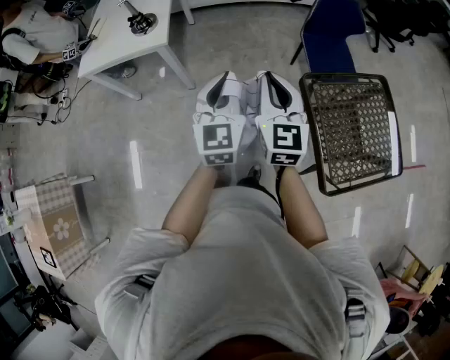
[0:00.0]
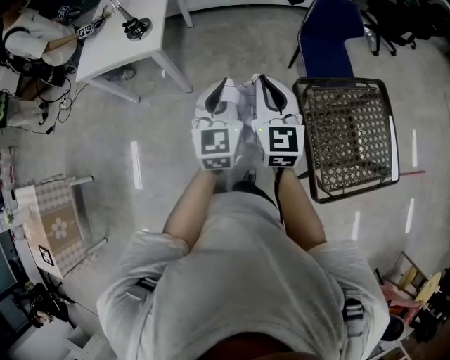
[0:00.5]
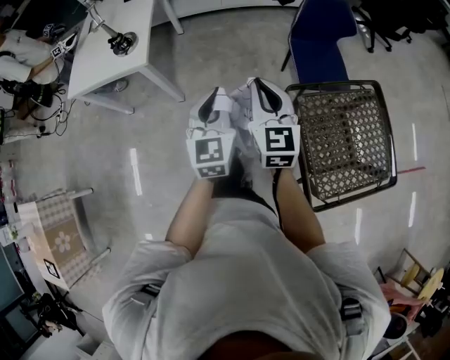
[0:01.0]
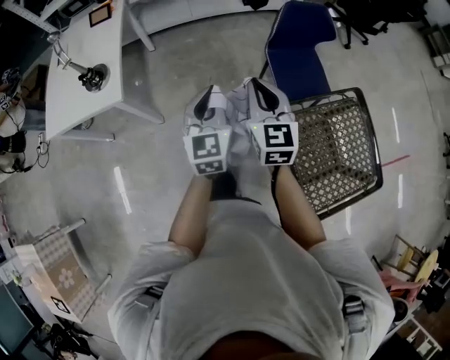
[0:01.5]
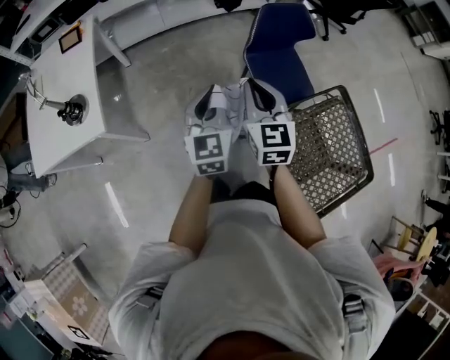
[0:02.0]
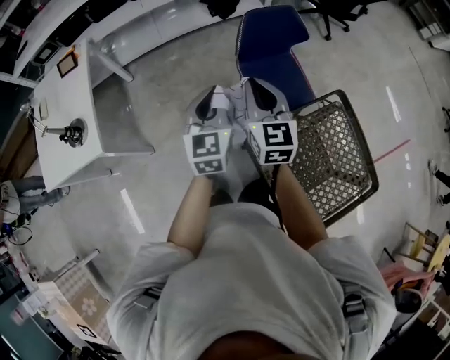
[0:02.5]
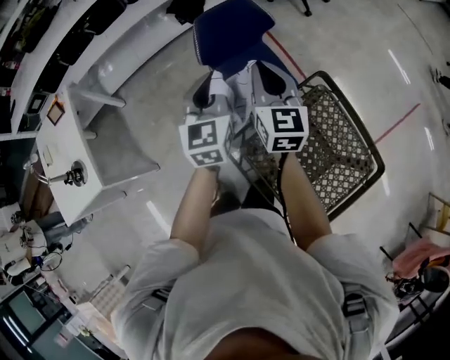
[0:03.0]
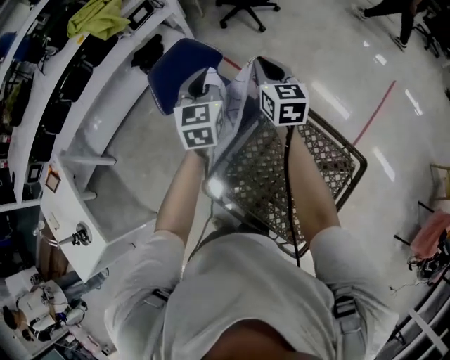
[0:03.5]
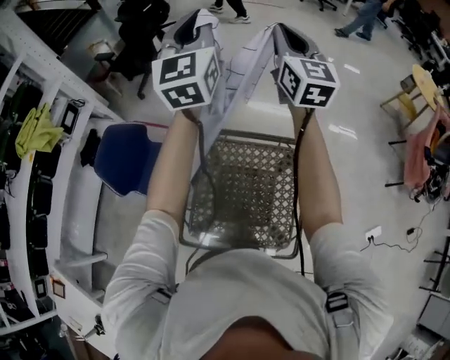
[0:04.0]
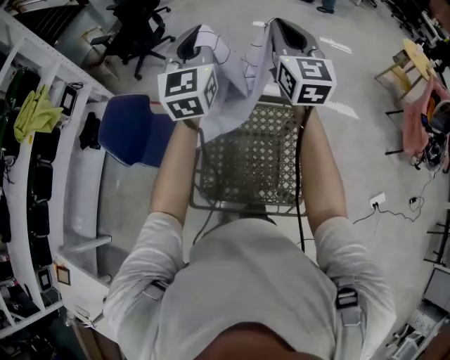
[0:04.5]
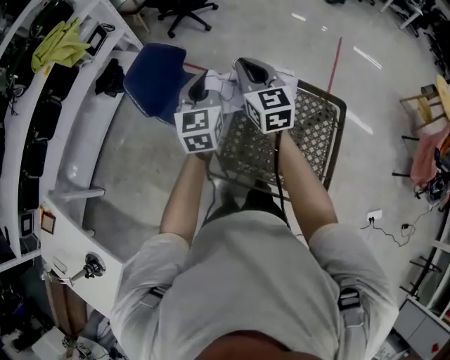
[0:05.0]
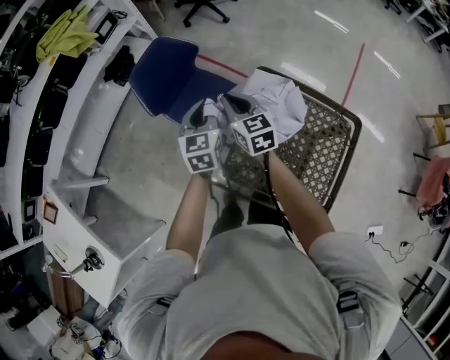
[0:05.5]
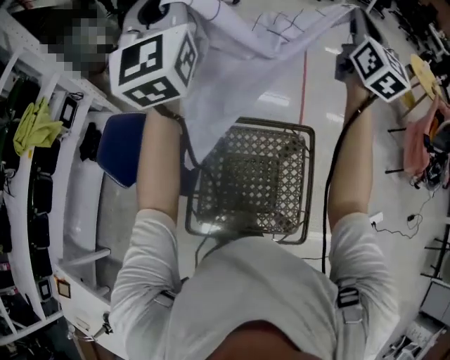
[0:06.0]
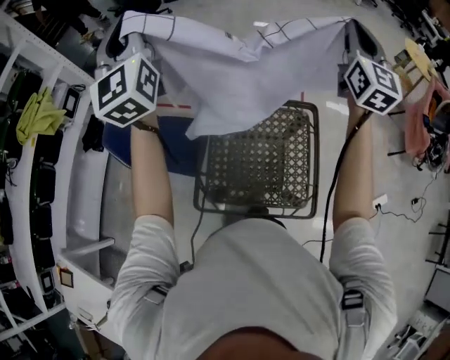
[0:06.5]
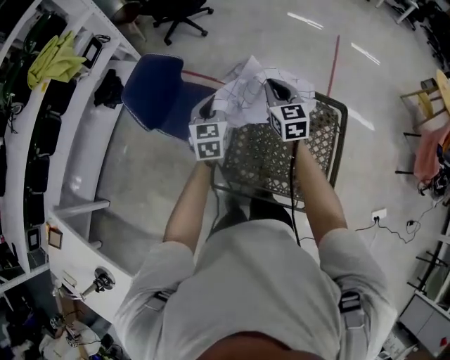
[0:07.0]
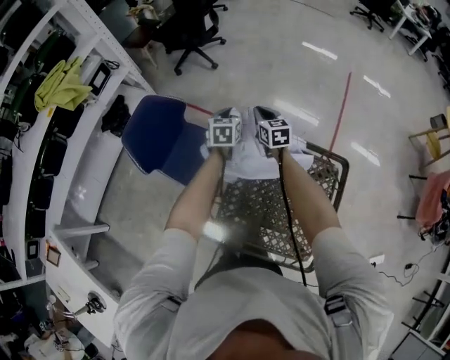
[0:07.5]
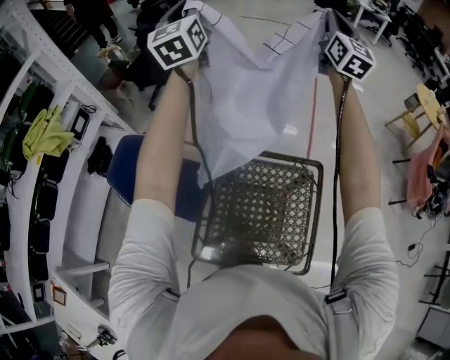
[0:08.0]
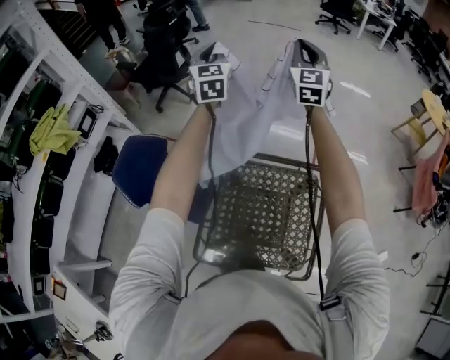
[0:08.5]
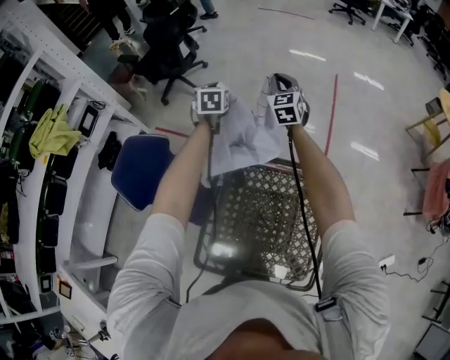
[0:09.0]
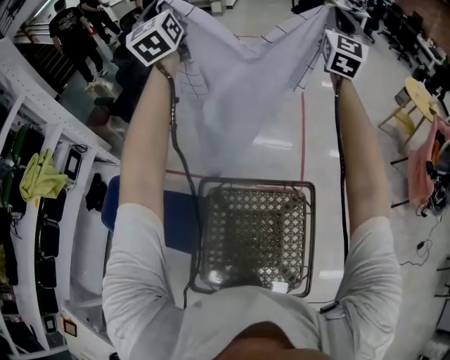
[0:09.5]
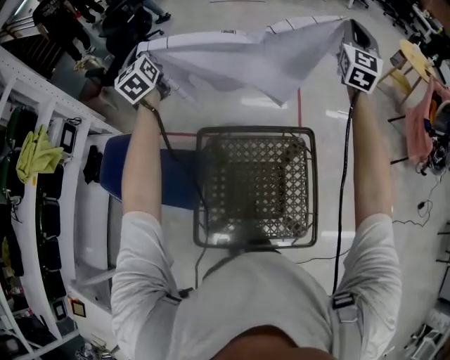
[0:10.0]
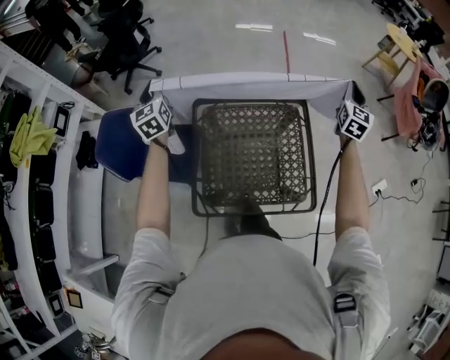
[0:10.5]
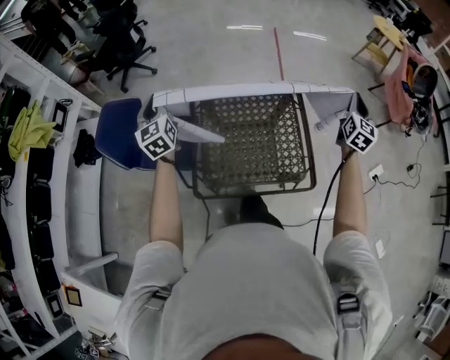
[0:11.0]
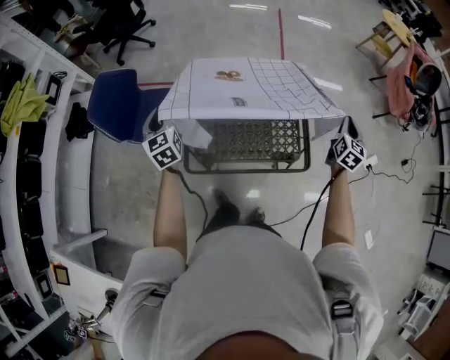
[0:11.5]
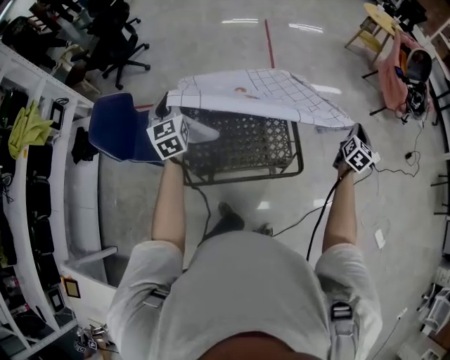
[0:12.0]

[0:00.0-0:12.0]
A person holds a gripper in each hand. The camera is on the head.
0:00.0 to 0:02.0: Both grippers travel together forward and to the right, about 30 cm.
0:02.0 to 0:04.0: Both grippers are carried roughly 70 cm. The left gripper swivels some 60 degrees. Meanwhile the right gripper turns by some 60 degrees.
0:04.0 to 0:06.0: The left gripper reaches roughly 40 cm downward, then returns. Meanwhile the right gripper travels downward and back again, some 35 cm each way.
0:06.0 to 0:08.0: Both grippers travel together forward, about 15 cm. The right gripper travels downward and back again, approximately 50 cm each way, while the left gripper moves some 50 cm downward and comes back.
0:08.0 to 0:10.0: The left gripper swings up and down, roughly 50 cm each way, with 2 reversals. Meanwhile the right gripper moves up and down over roughly 40 cm, changing direction 2 times, and rotates roughly 30 degrees.
0:10.0 to 0:12.0: The two grippers travel together, backward and to the right, some 50 cm. The left gripper heads downward, covering about 15 cm, and swivels about 20 degrees. The right gripper moves downward, about 35 cm, and tilts its fingers approximately 30 degrees downward.

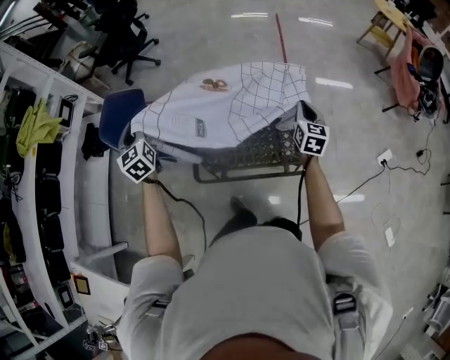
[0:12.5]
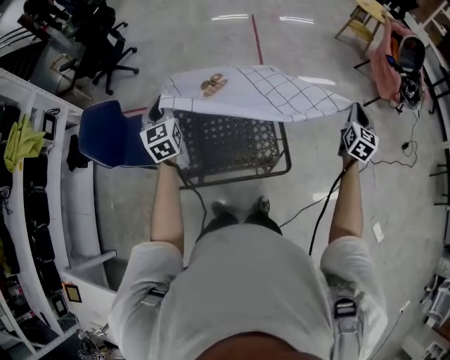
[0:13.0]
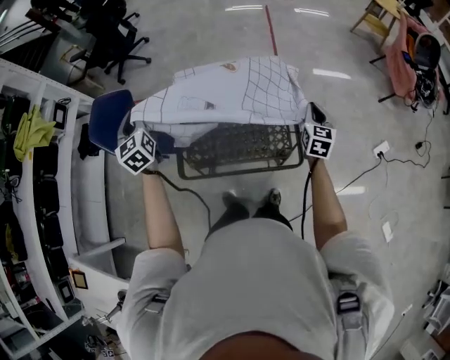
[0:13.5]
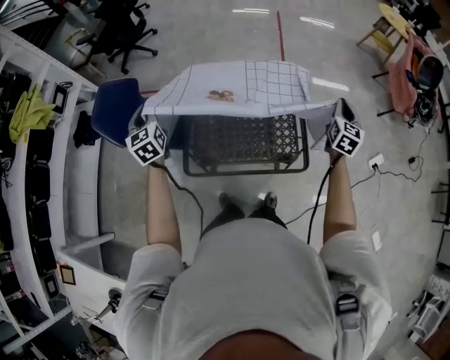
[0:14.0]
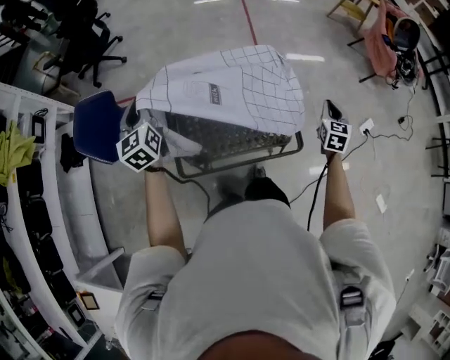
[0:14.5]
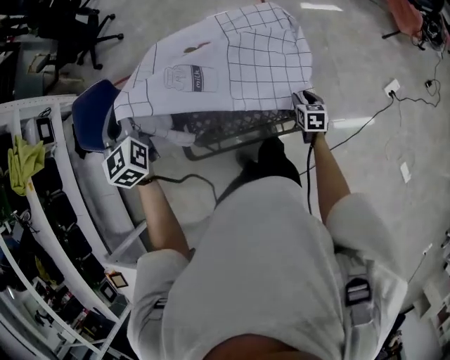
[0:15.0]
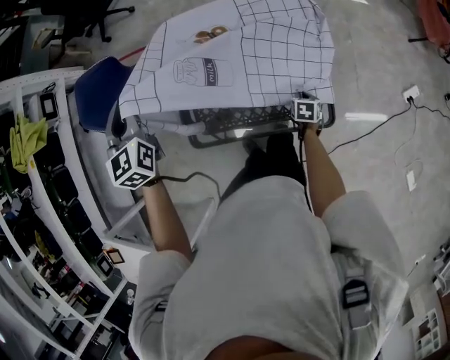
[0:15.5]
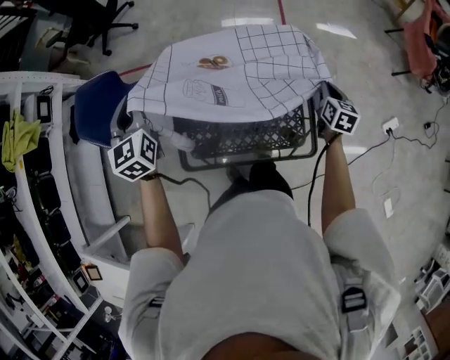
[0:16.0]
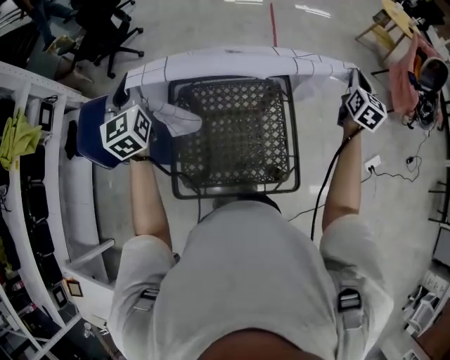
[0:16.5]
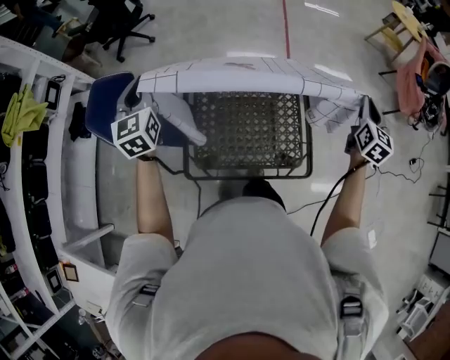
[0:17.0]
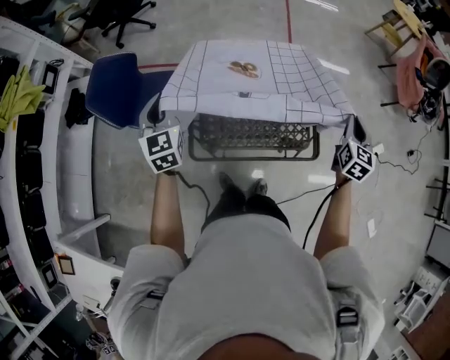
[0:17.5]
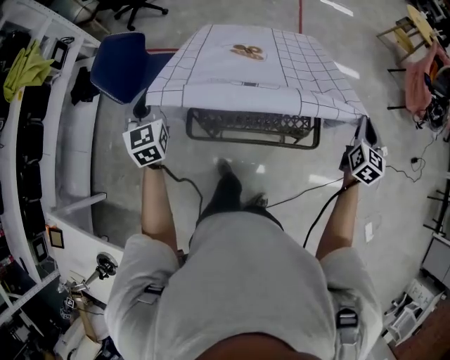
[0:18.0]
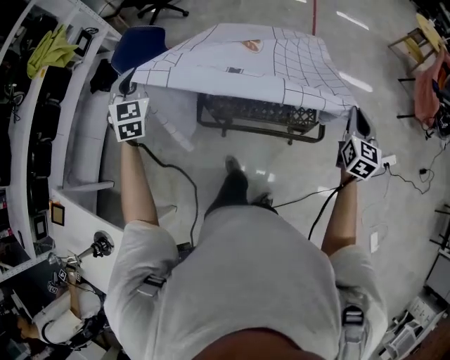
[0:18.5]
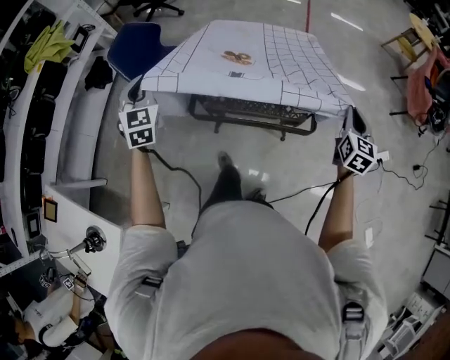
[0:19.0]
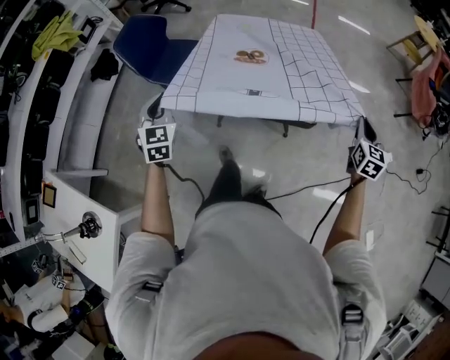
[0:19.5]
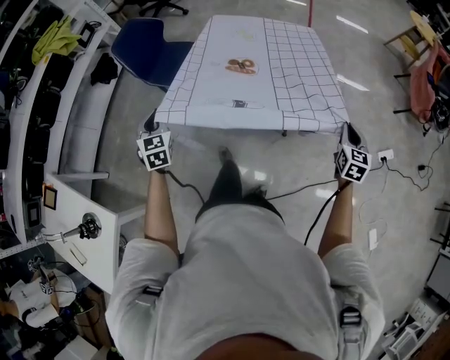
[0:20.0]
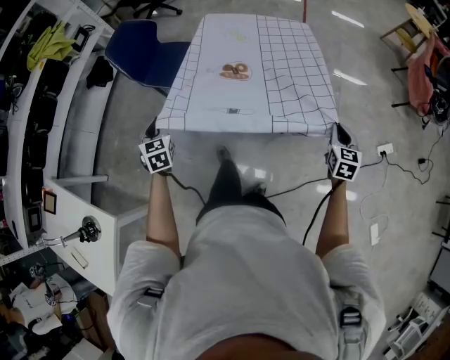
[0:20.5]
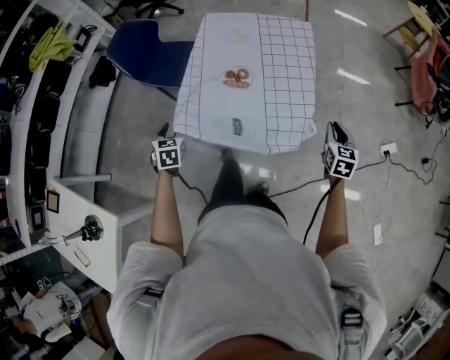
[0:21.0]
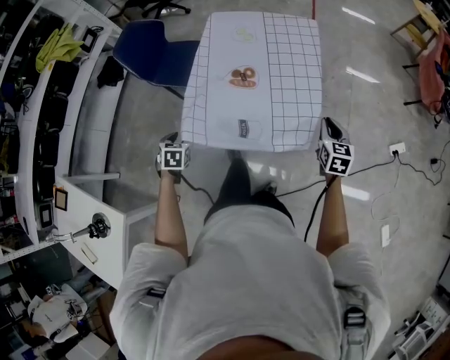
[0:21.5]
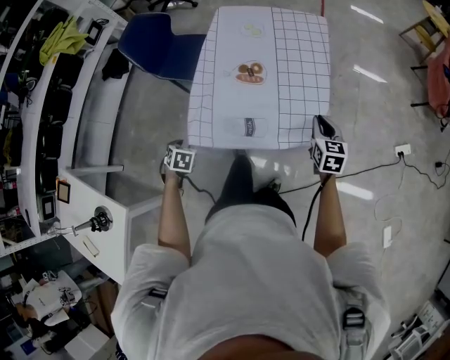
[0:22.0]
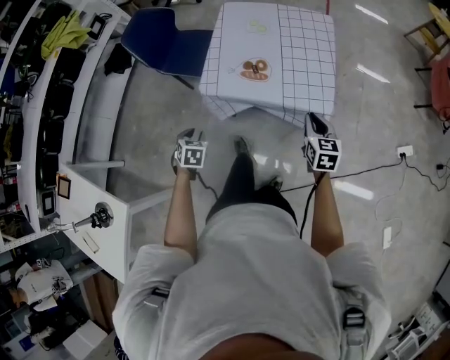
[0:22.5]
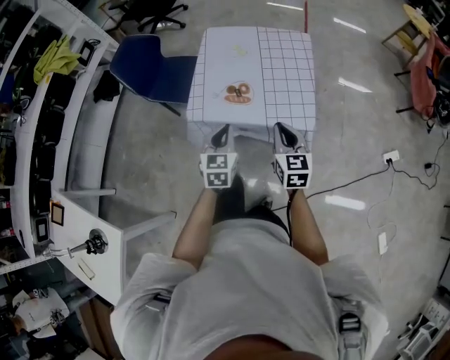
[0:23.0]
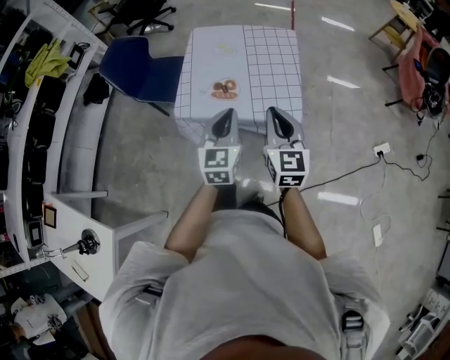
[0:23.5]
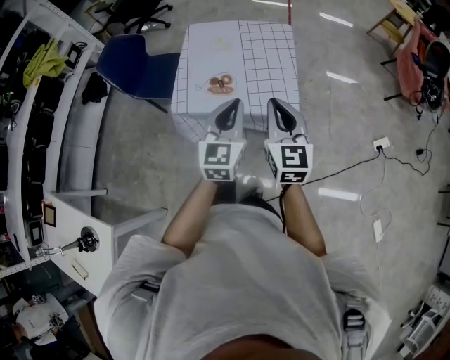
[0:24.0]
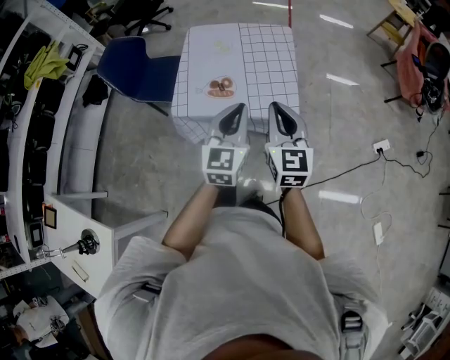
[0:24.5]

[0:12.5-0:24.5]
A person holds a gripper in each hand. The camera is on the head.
0:12.5 to 0:14.5: The right gripper shifts approximately 15 cm to the right; the left gripper goes left and right, about 25 cm each way, reversing 2 times.
0:14.5 to 0:16.5: The left gripper heads forward and upward, covering some 15 cm; the right gripper heads forward, covering approximately 25 cm, goes downward and returns, about 30 cm each way, and opens and closes again.
0:16.5 to 0:18.5: The two grippers go roughly 30 cm backward. The left gripper rotates approximately 30 degrees.
0:18.5 to 0:20.5: The right gripper heads downward and backward, covering about 20 cm; the left gripper shifts some 25 cm downward and backward, and turns by some 30 degrees.
0:20.5 to 0:22.5: The left gripper moves downward and backward, roughly 15 cm, changes its angle by roughly 30 degrees, and opens, while the right gripper goes approximately 15 cm to the left.
0:22.5 to 0:24.5: The left gripper heads to the right and upward, covering approximately 40 cm, tilts its fingers about 50 degrees upward, and closes up, while the right gripper heads upward, covering roughly 20 cm, and swivels about 30 degrees.

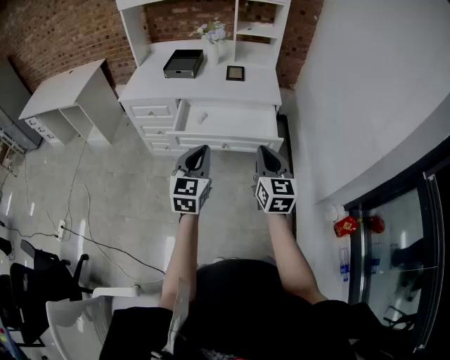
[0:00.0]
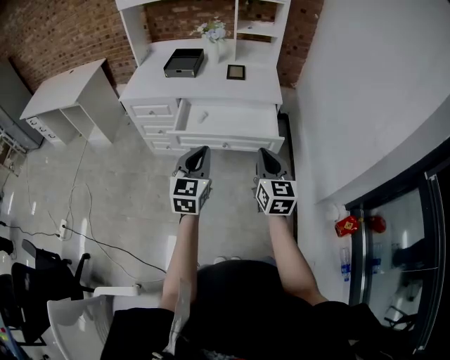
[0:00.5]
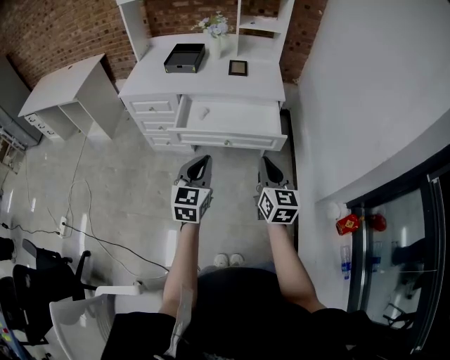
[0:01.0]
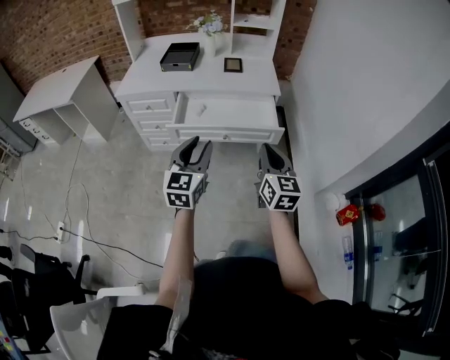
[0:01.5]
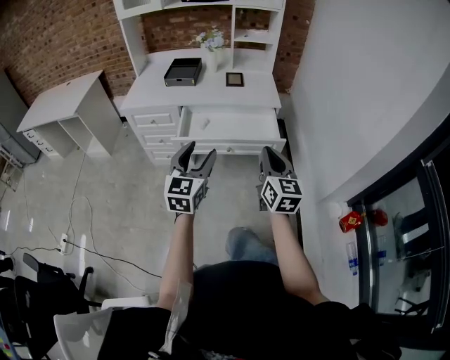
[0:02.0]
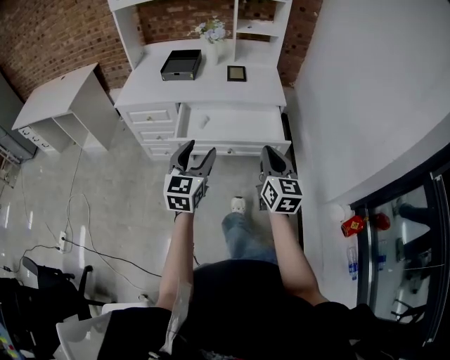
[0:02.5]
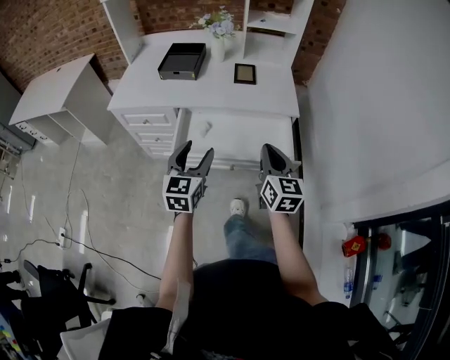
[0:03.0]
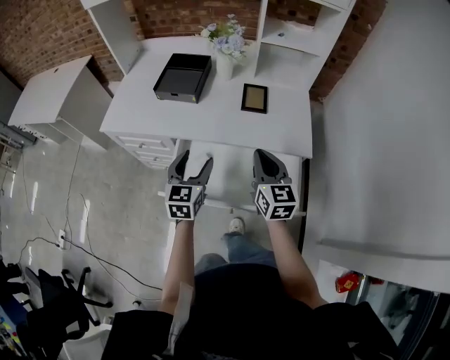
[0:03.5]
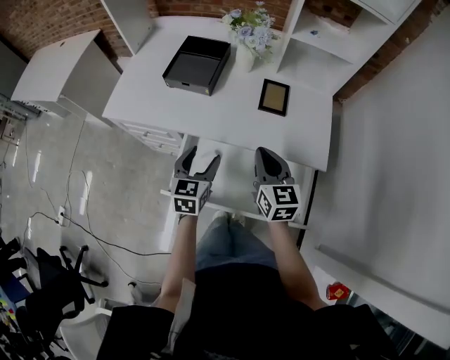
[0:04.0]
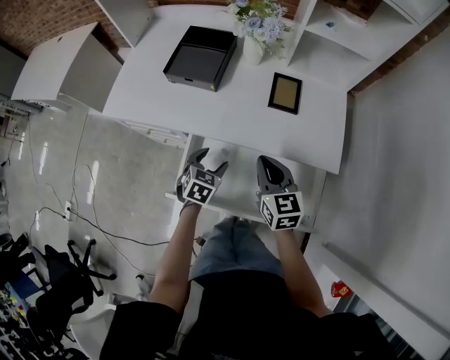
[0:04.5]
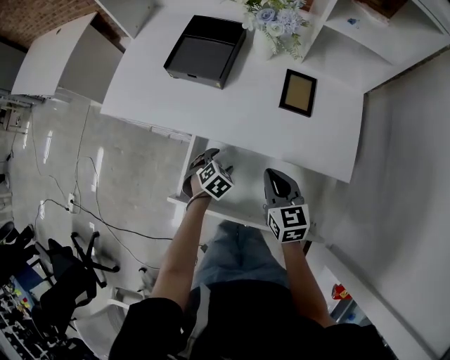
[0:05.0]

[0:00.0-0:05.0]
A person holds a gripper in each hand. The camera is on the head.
0:00.0 to 0:02.5: The right gripper shifts by about 5 cm. The left gripper is displaced forward by roughly 5 cm, and opens its fingers.
0:02.5 to 0:05.0: The grippers both shift forward and downward by roughly 50 cm. The right gripper swivels approximately 40 degrees; the left gripper tips its fingers downward by some 60 degrees.
